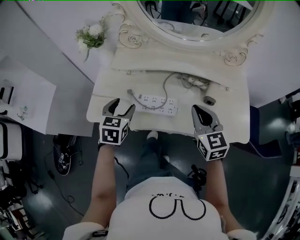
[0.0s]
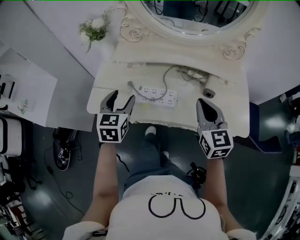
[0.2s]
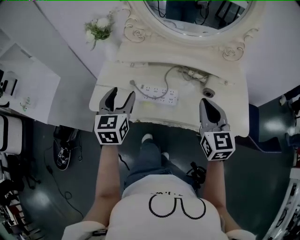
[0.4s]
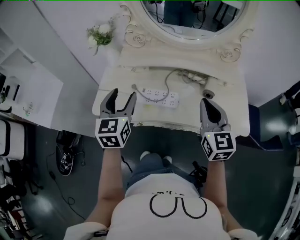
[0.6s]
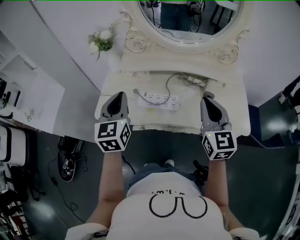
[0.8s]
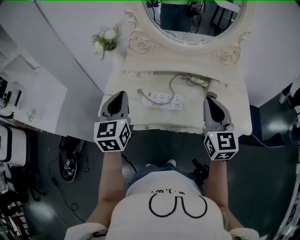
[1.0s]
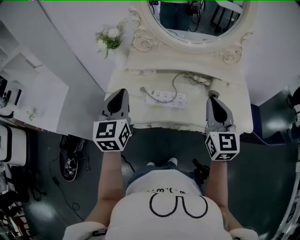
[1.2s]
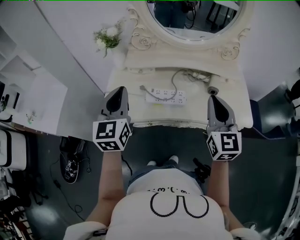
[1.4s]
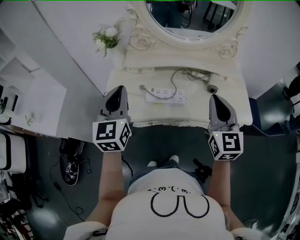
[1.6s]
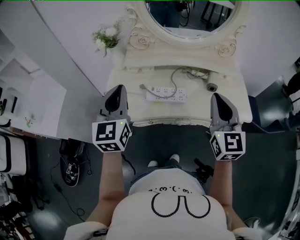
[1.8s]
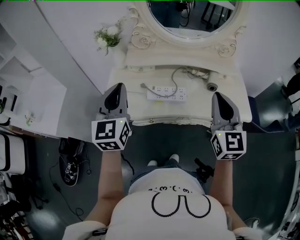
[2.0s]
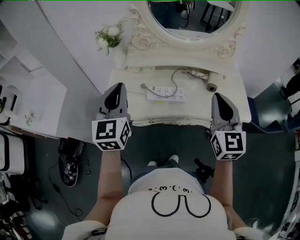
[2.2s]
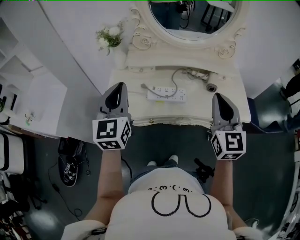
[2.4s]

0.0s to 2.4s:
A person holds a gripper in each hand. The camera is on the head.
0.0s to 1.2s: Both grippers travel together upward and backward, about 15 cm. The left gripper tips its fingers upward by about 30 degrees, and closes; the right gripper changes its angle by roughly 20 degrees.
1.2s to 2.4s: The right gripper travels backward by some 5 cm. Meanwhile the left gripper changes place by roughly 5 cm.

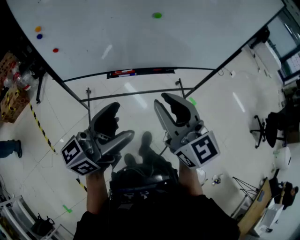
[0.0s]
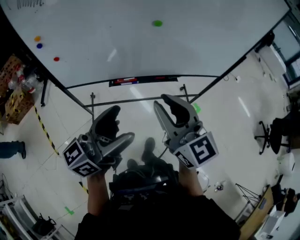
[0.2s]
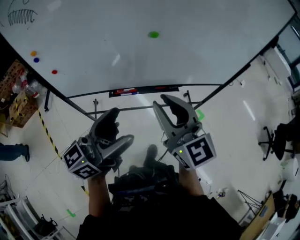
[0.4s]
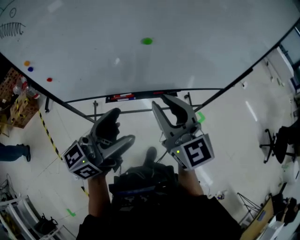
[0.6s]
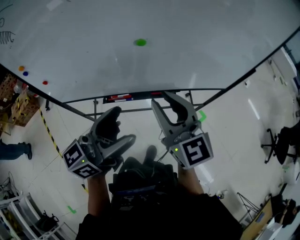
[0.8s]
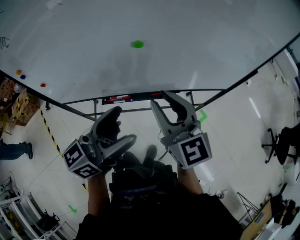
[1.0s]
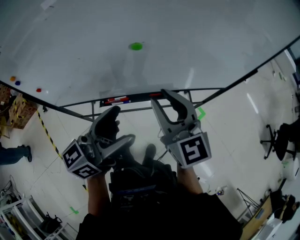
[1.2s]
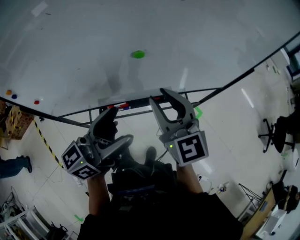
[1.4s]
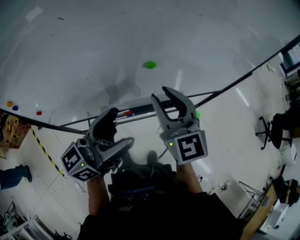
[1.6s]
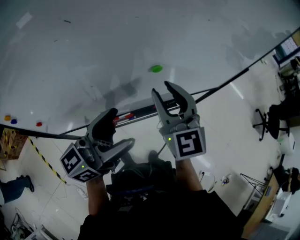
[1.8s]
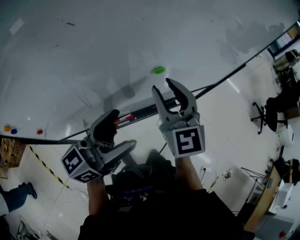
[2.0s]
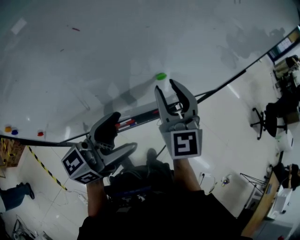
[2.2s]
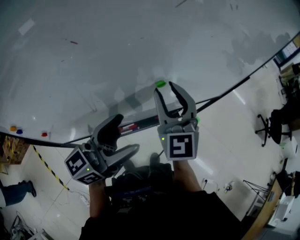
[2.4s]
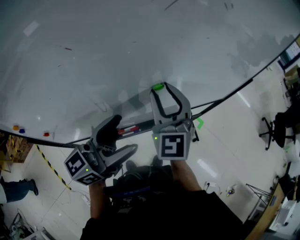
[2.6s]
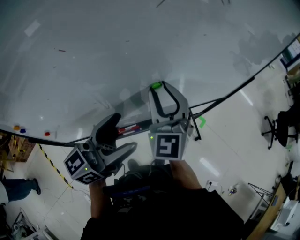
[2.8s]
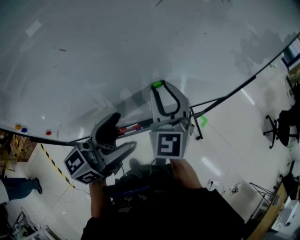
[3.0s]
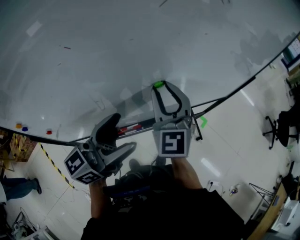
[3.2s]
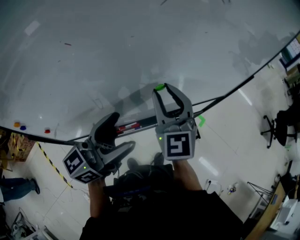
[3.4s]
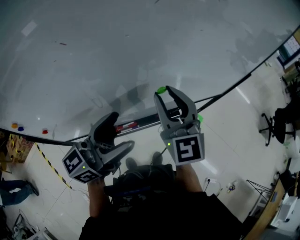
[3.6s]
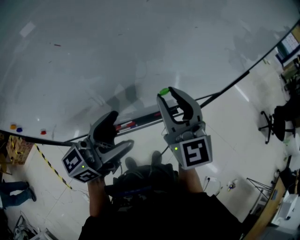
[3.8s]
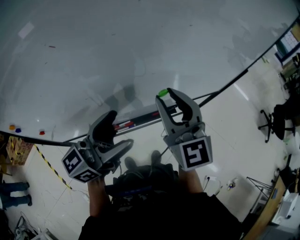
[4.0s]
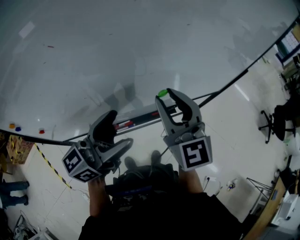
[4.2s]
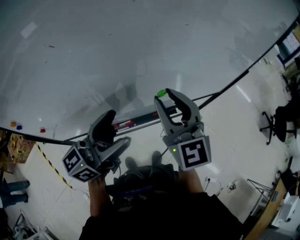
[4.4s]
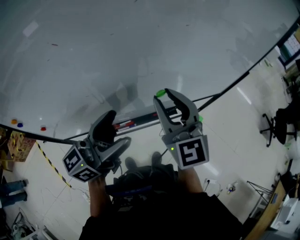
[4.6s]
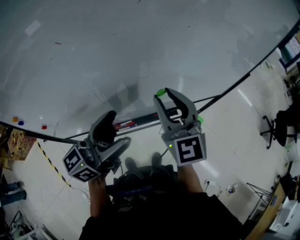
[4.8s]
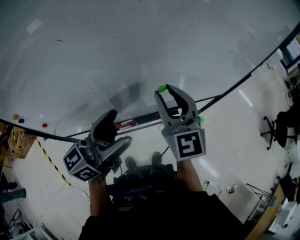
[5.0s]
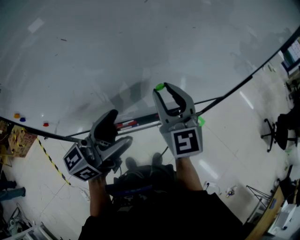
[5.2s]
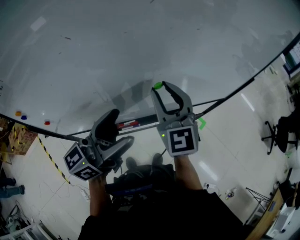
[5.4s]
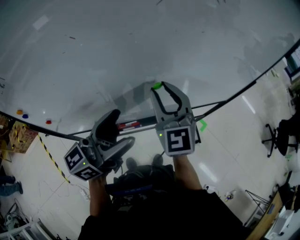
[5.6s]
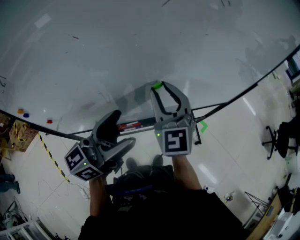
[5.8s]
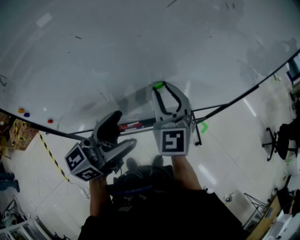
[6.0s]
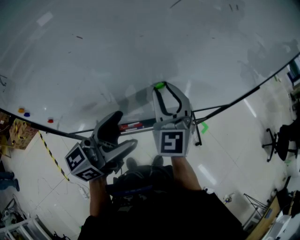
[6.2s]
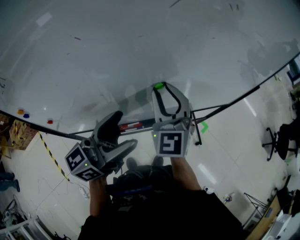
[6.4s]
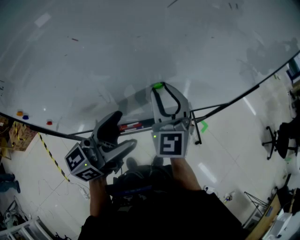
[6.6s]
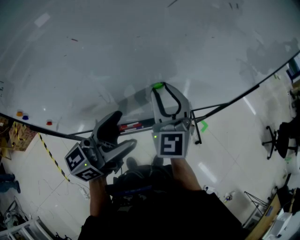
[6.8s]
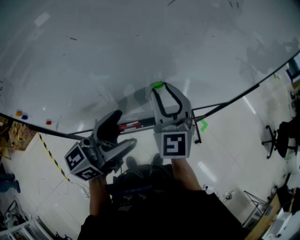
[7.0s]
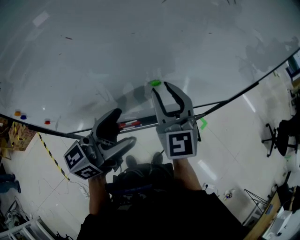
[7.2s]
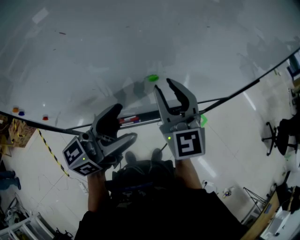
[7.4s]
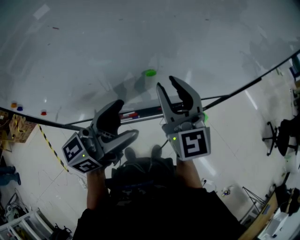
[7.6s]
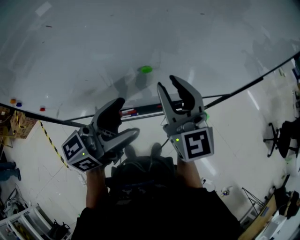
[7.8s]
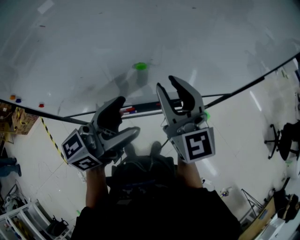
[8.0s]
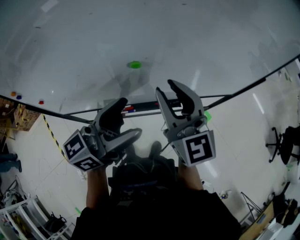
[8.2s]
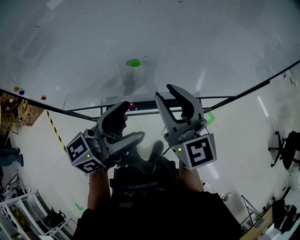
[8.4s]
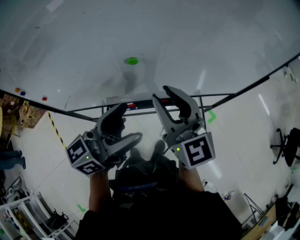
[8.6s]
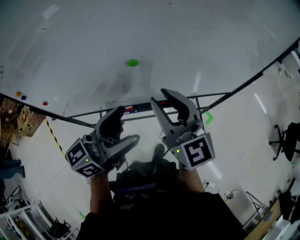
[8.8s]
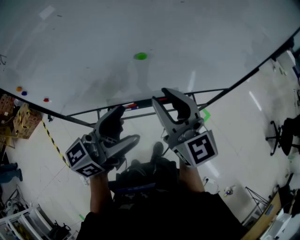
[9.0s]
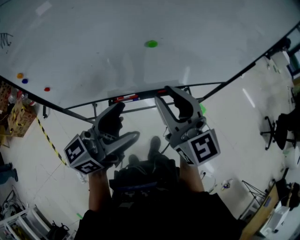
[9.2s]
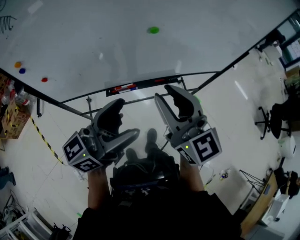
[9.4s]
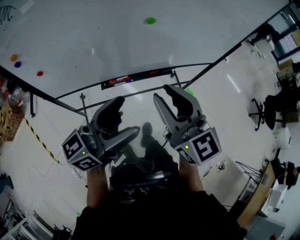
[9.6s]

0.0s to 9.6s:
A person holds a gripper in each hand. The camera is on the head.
0.0s to 1.6s: The grippers both shift forward by approximately 30 cm.
1.6s to 3.2s: The right gripper moves forward, approximately 5 cm.
3.2s to 4.8s: The right gripper moves approximately 5 cm.
4.8s to 6.4s: The right gripper goes some 5 cm to the left.
6.4s to 8.0s: Both grippers move to the right, some 5 cm. The right gripper changes its angle by approximately 30 degrees.
8.0s to 9.6s: Both grippers travel together backward, about 20 cm.

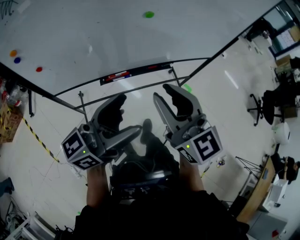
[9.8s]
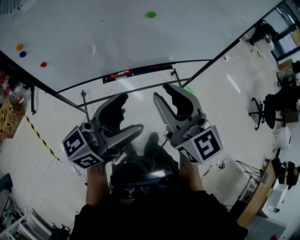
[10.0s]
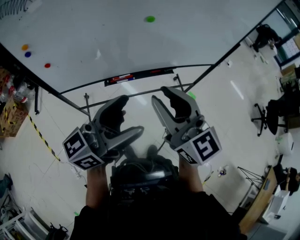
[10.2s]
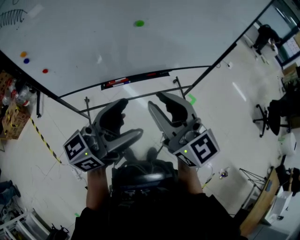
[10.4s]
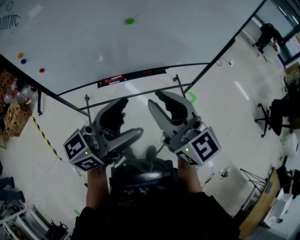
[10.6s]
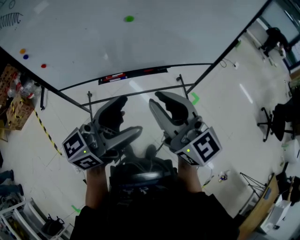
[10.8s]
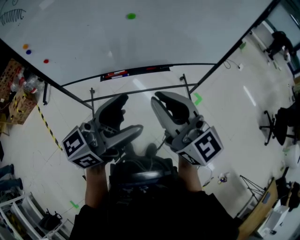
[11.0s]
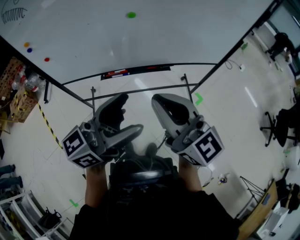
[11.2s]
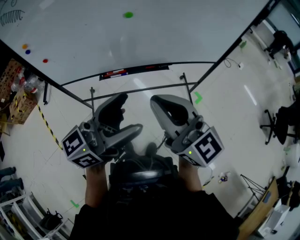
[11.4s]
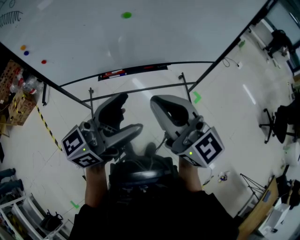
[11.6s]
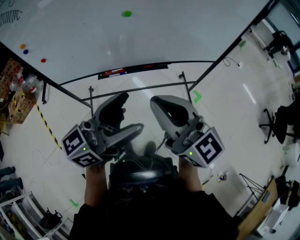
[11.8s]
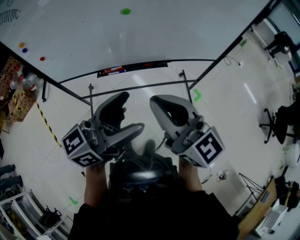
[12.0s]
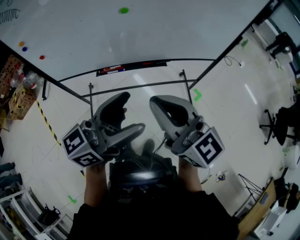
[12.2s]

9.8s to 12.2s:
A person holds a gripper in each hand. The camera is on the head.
9.8s to 11.0s: Both grippers move to the right, some 10 cm.
11.0s to 12.2s: The grippers make only small movements.

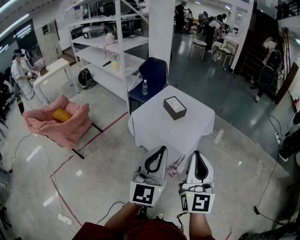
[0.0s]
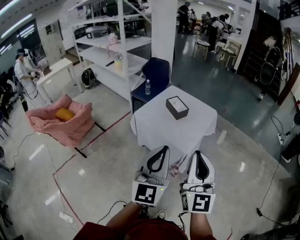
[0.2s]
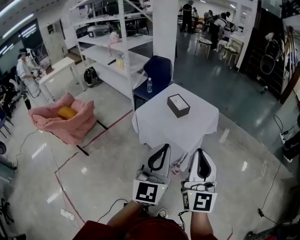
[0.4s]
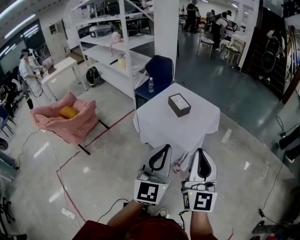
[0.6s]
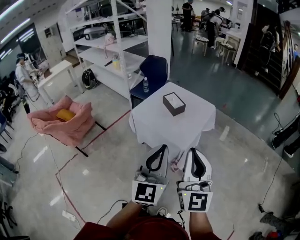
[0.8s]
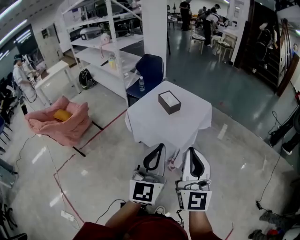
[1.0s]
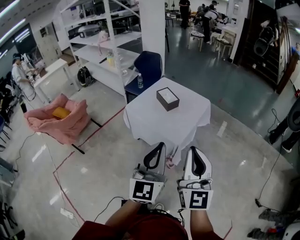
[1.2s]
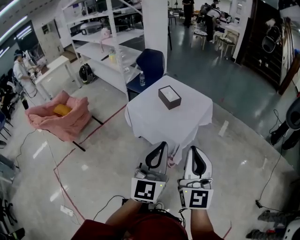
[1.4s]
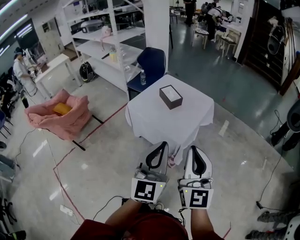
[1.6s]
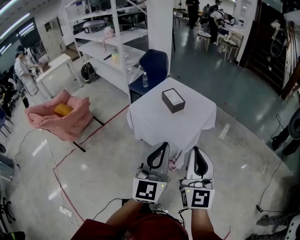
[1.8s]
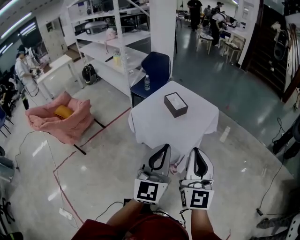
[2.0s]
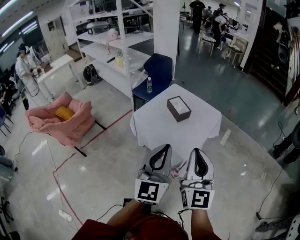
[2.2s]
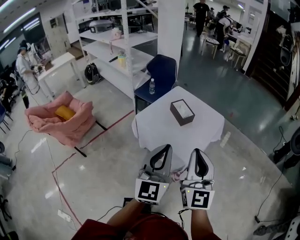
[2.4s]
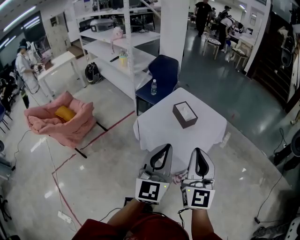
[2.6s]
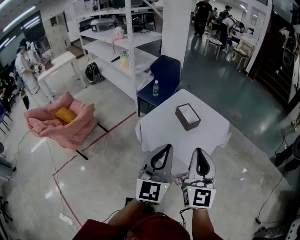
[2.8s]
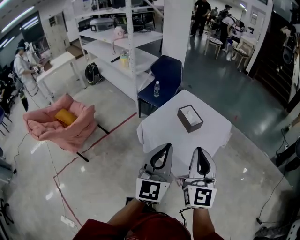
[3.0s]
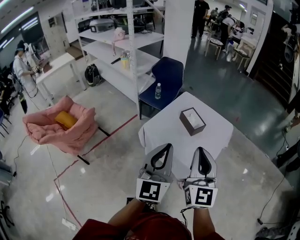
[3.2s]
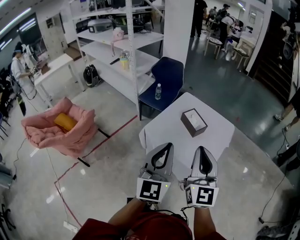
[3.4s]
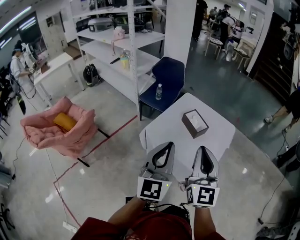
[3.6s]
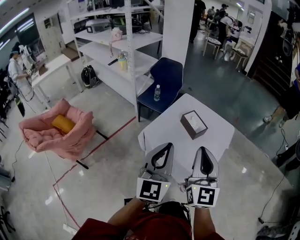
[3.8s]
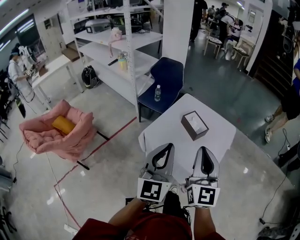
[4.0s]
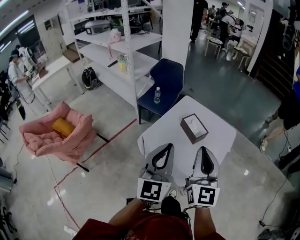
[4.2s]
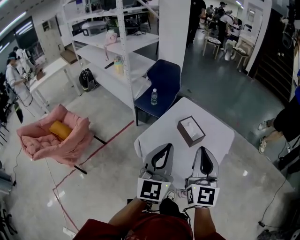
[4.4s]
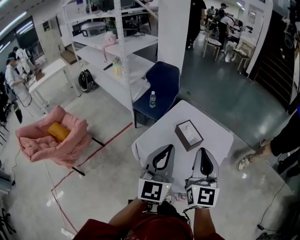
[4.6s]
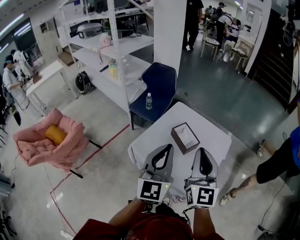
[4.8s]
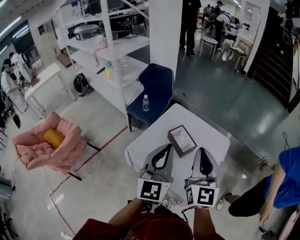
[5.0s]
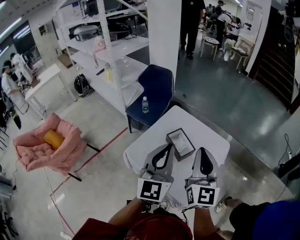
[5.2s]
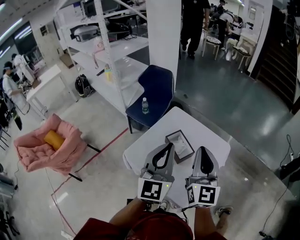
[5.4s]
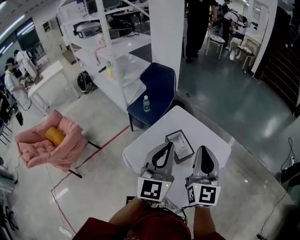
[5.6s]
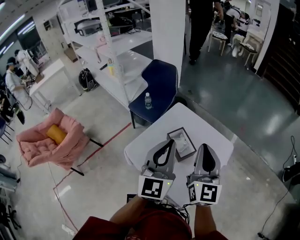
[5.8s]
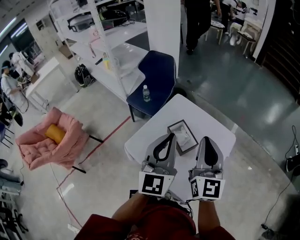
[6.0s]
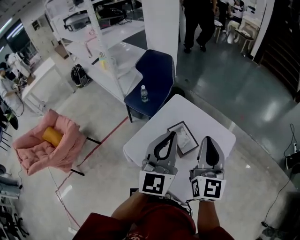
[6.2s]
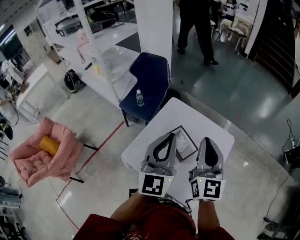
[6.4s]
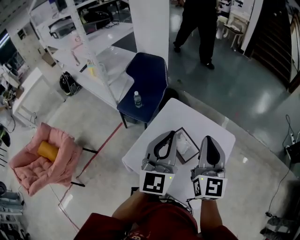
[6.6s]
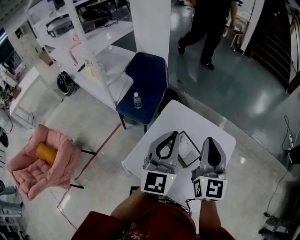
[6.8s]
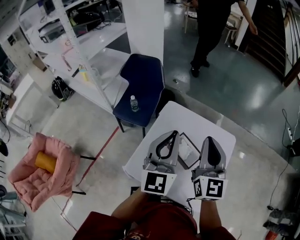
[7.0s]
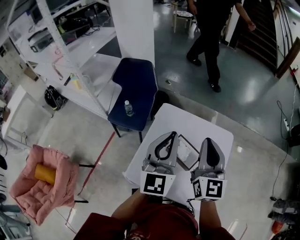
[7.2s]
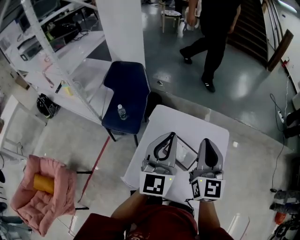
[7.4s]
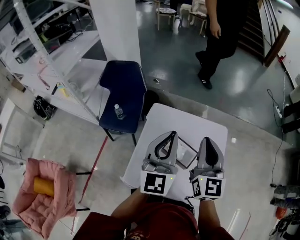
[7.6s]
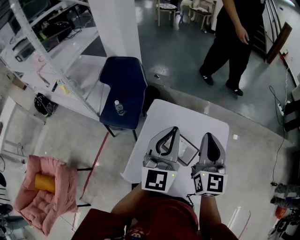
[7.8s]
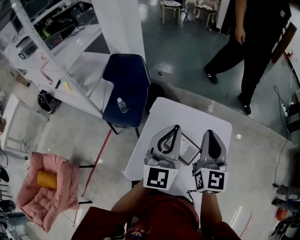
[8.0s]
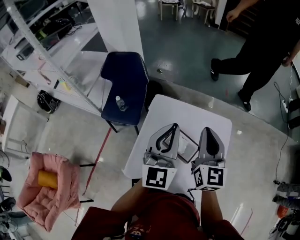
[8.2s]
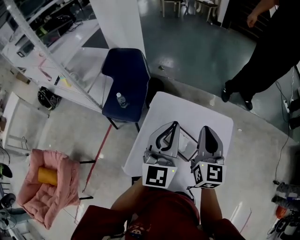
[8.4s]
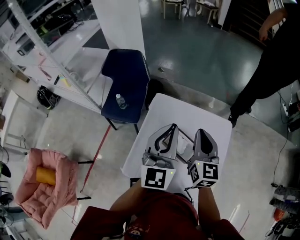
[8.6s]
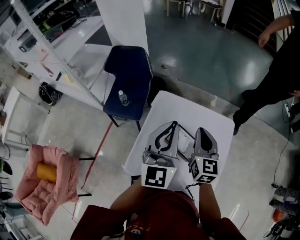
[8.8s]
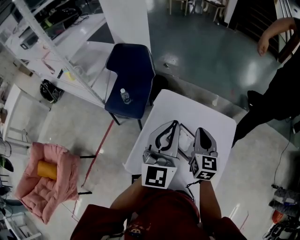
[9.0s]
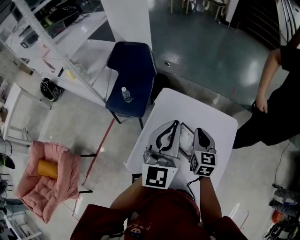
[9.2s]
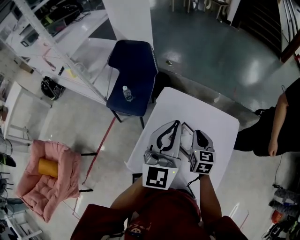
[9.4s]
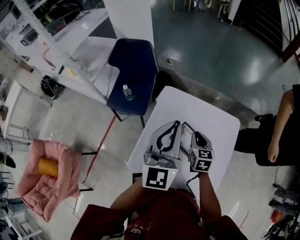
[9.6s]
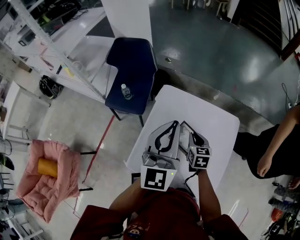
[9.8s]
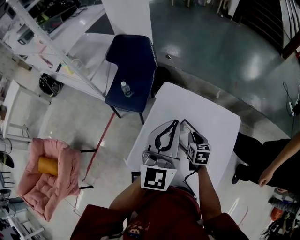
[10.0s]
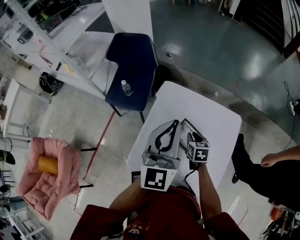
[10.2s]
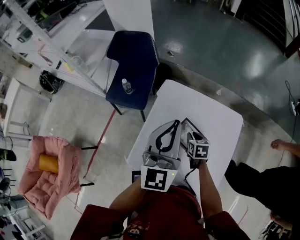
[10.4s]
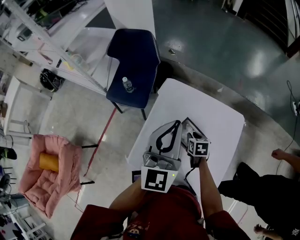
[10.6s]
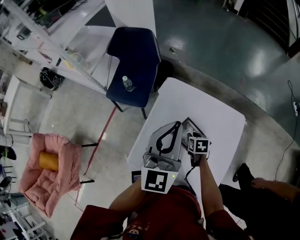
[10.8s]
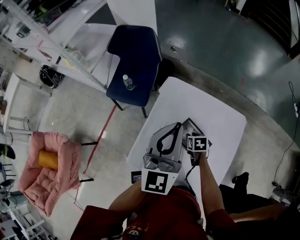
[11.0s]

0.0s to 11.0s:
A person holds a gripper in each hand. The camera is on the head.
0.0s to 1.6s: Both grippers move to the right, roughly 10 cm.
1.6s to 3.2s: Both grippers move forward and to the left, approximately 30 cm.
3.2s to 4.8s: Both grippers move forward, about 20 cm.
4.8s to 6.2s: The right gripper shifts roughly 20 cm forward and to the right. Meanwhile the left gripper shifts about 15 cm forward.
6.2s to 7.8s: The right gripper goes approximately 15 cm forward and to the left, and swivels approximately 20 degrees, while the left gripper shifts some 15 cm forward, and rotates roughly 20 degrees.
7.8s to 9.4s: The right gripper shifts approximately 20 cm downward, and changes its angle by approximately 30 degrees.
9.4s to 11.0s: The right gripper goes roughly 20 cm downward, angles its fingers downward, by about 40 degrees, and opens.
